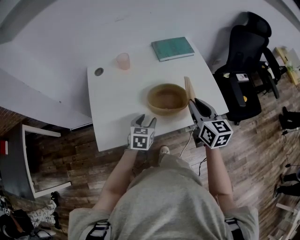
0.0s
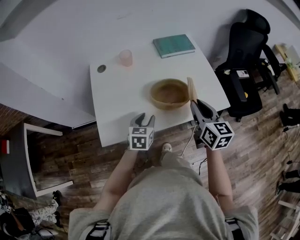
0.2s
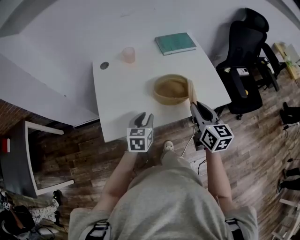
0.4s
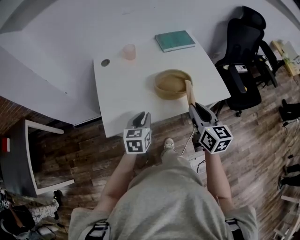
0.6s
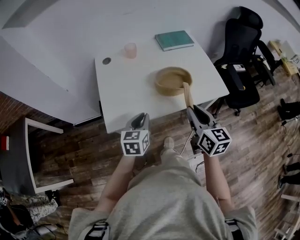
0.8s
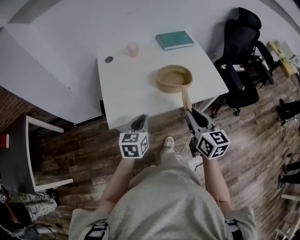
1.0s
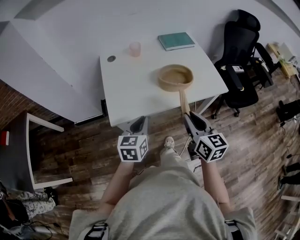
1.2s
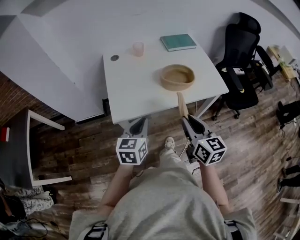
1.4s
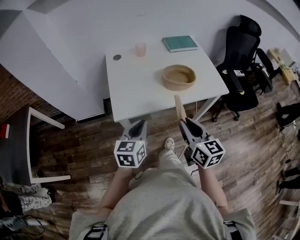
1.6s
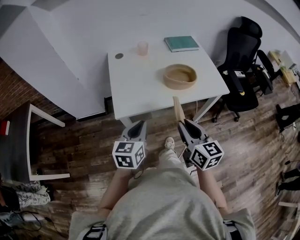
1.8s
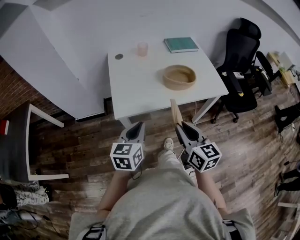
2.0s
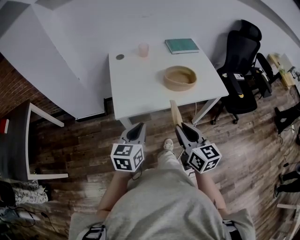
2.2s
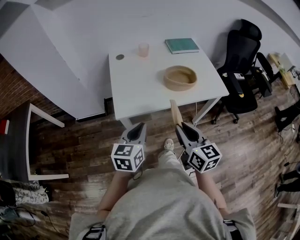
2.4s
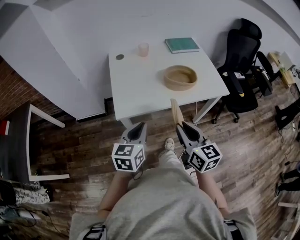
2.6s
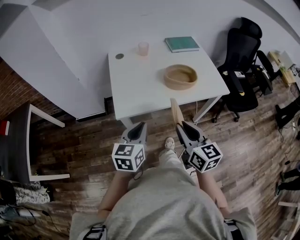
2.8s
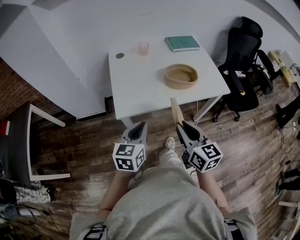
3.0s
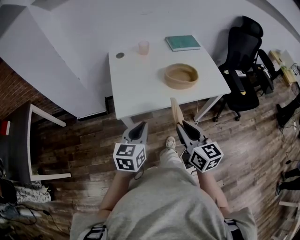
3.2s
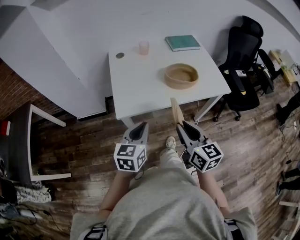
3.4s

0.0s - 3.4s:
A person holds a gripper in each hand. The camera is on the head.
0.0s - 1.6s: The left gripper travels backward, upward and to the left by about 30 cm, and closes. Meanwhile the right gripper moves backward and to the left, about 30 cm.
1.6s - 3.4s: The grippers move only a little.

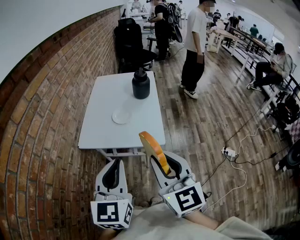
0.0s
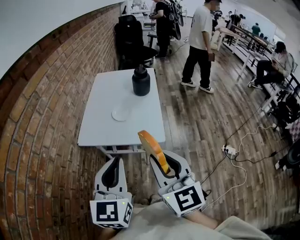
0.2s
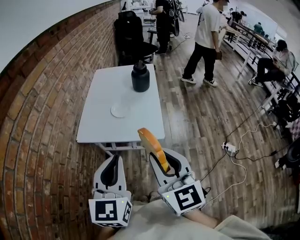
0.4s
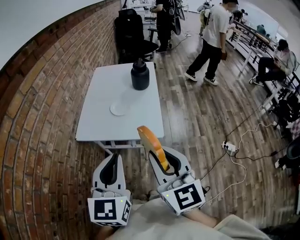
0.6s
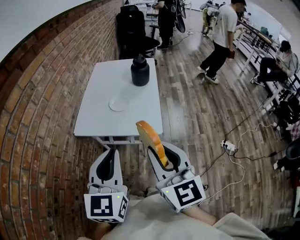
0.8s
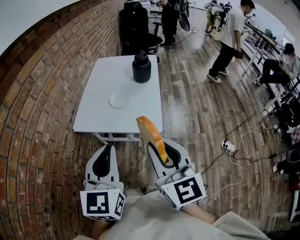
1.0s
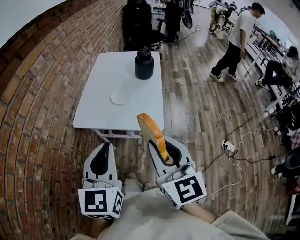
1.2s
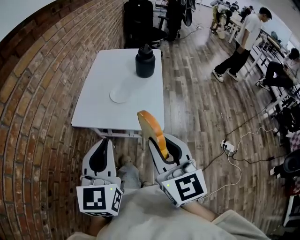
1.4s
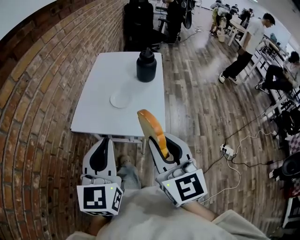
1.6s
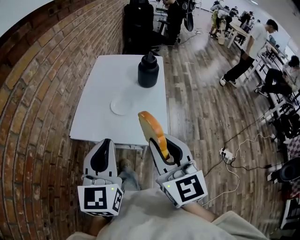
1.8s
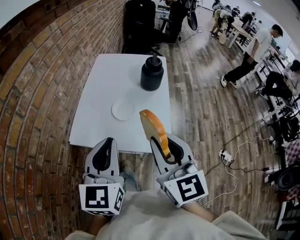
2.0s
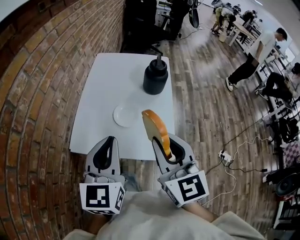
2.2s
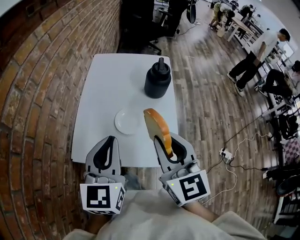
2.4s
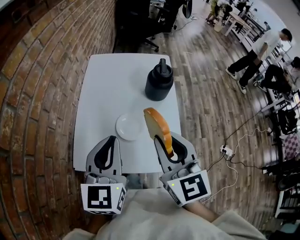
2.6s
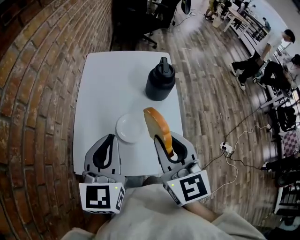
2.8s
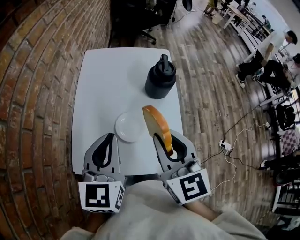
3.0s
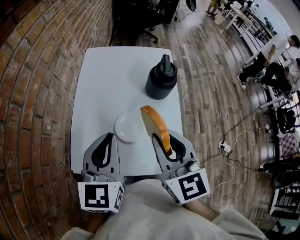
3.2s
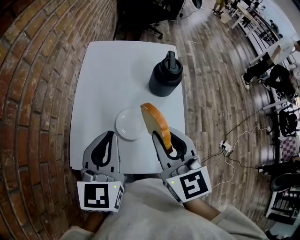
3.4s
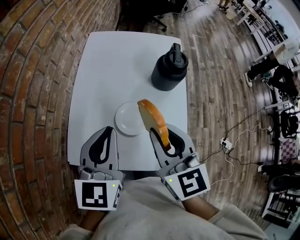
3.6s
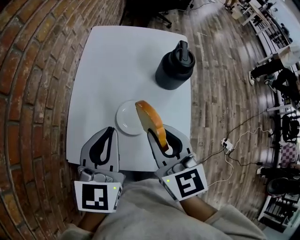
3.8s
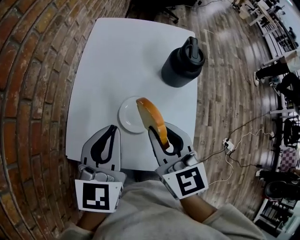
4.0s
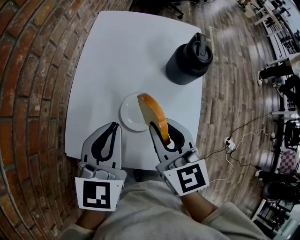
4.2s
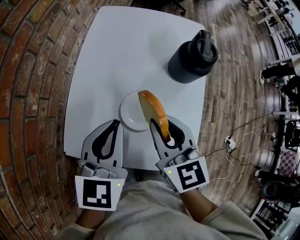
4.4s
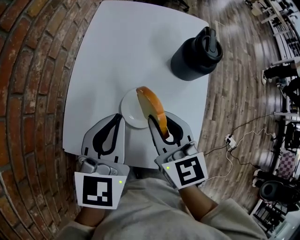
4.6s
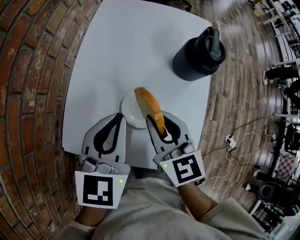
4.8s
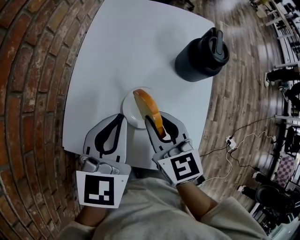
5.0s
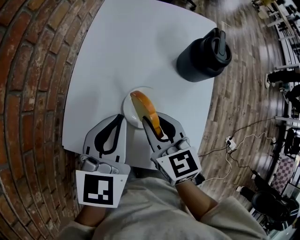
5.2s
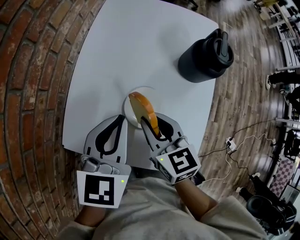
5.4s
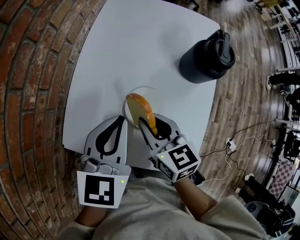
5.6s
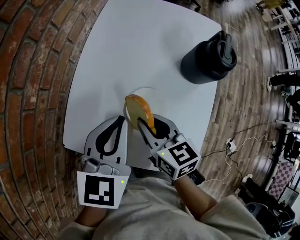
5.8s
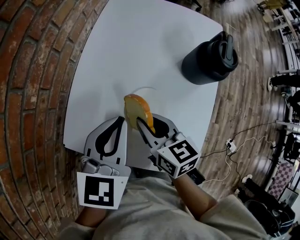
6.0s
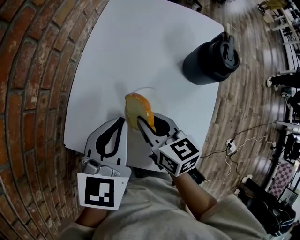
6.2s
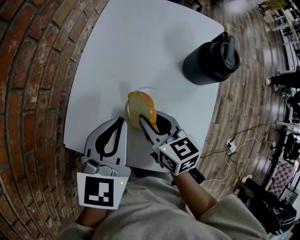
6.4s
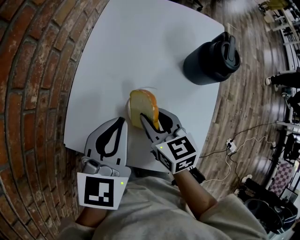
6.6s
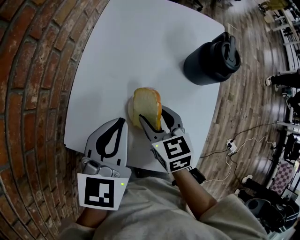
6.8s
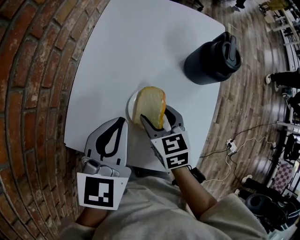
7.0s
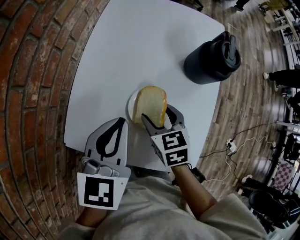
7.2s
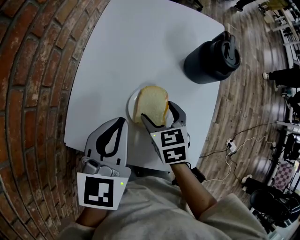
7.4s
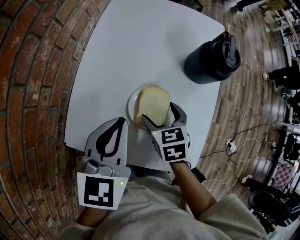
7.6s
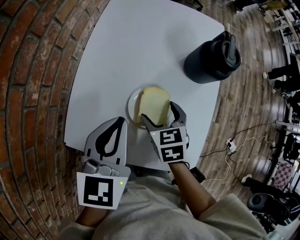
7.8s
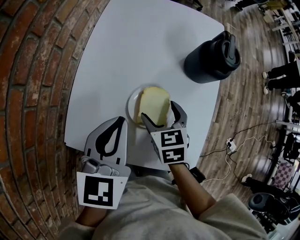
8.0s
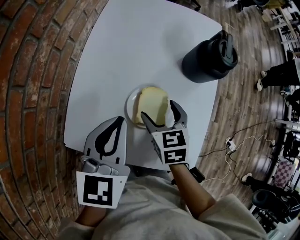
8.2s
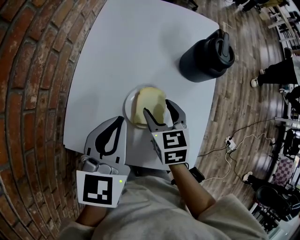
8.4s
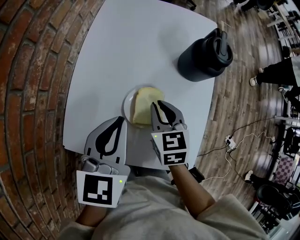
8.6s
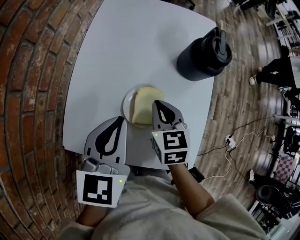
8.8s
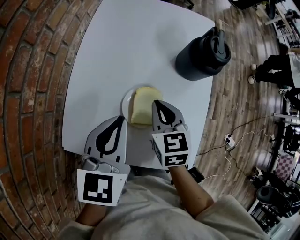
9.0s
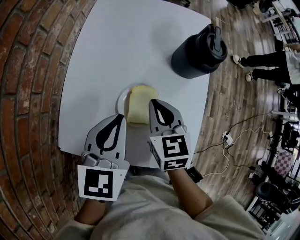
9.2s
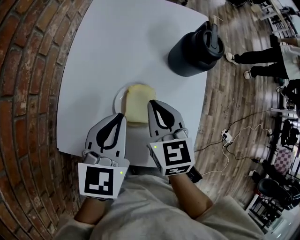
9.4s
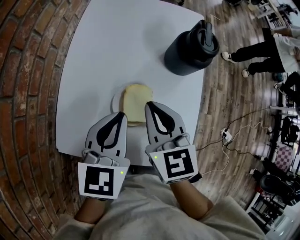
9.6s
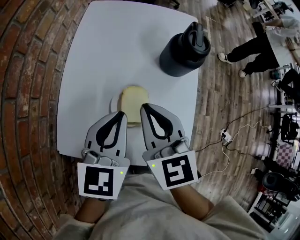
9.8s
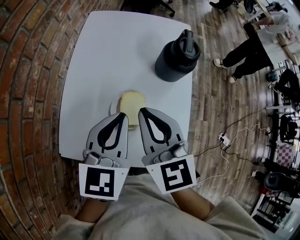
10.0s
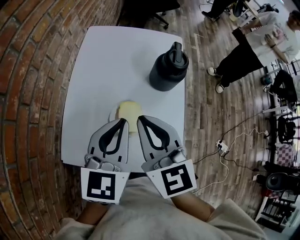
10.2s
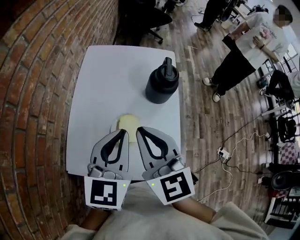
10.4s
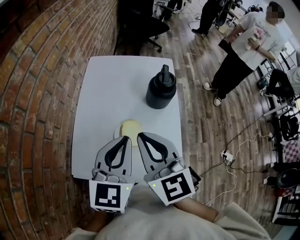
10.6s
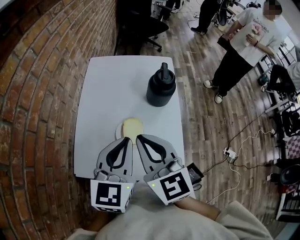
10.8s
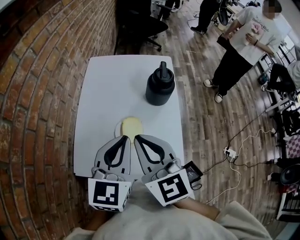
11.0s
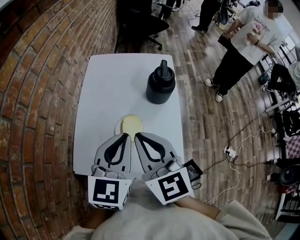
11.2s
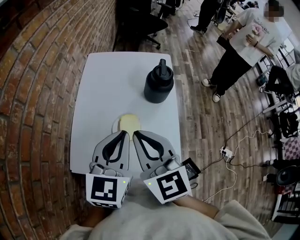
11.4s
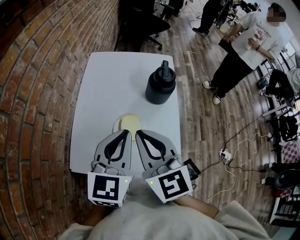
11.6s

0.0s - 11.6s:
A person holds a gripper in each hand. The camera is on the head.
0.0s - 1.4s: The right gripper ends up about 5 cm from where it was.
1.4s - 2.8s: The grippers both shift forward by roughly 30 cm.
2.8s - 4.4s: The left gripper shifts about 10 cm downward; the right gripper shifts approximately 15 cm downward and forward.
4.4s - 5.8s: The right gripper goes approximately 10 cm downward, and swivels roughly 20 degrees.
5.8s - 7.2s: The right gripper goes roughly 5 cm downward, rotates approximately 20 degrees, and opens up.
7.2s - 8.8s: The right gripper closes its fingers.
8.8s - 10.2s: The right gripper moves upward, about 20 cm, and swivels roughly 30 degrees, while the left gripper is displaced upward and to the right by approximately 10 cm.
10.2s - 11.6s: The right gripper ends up roughly 5 cm from where it was; the left gripper ends up some 5 cm from where it was.

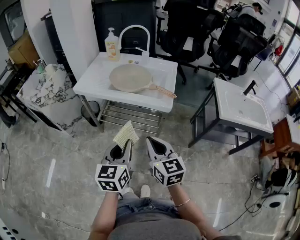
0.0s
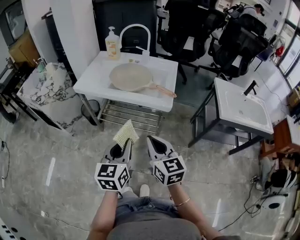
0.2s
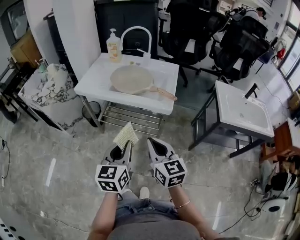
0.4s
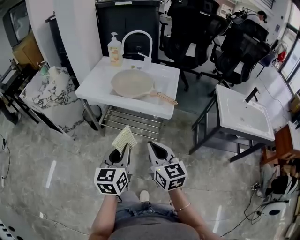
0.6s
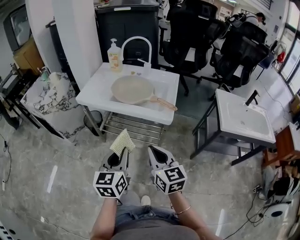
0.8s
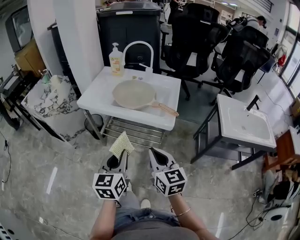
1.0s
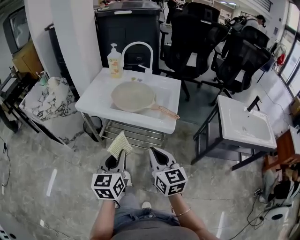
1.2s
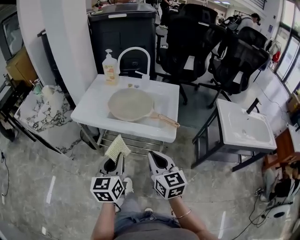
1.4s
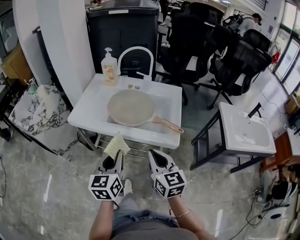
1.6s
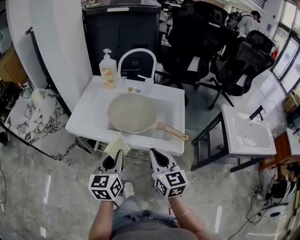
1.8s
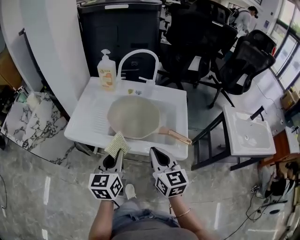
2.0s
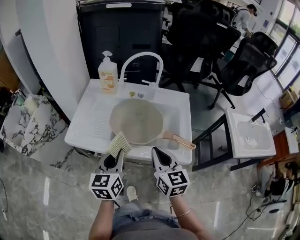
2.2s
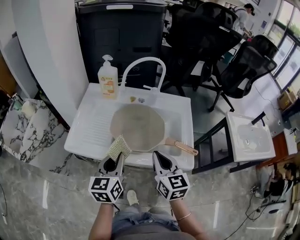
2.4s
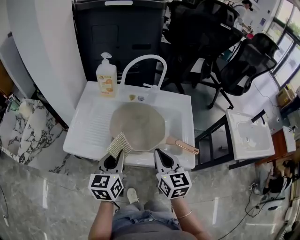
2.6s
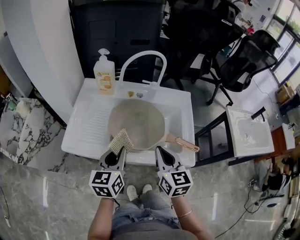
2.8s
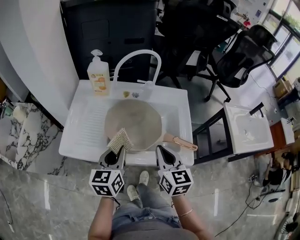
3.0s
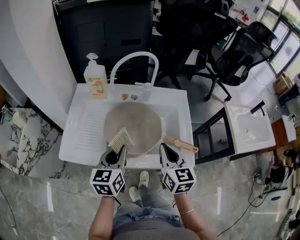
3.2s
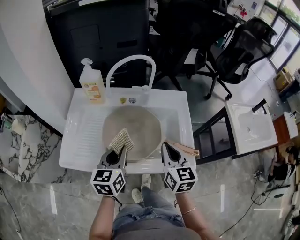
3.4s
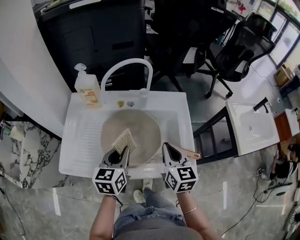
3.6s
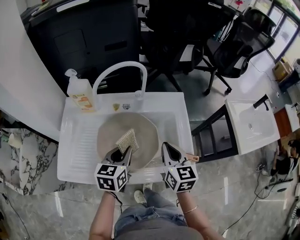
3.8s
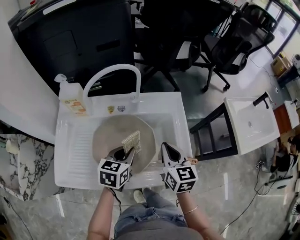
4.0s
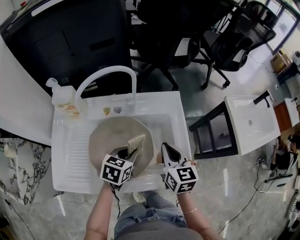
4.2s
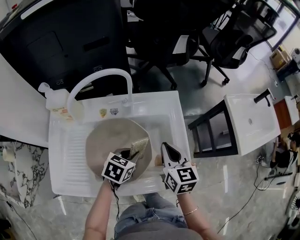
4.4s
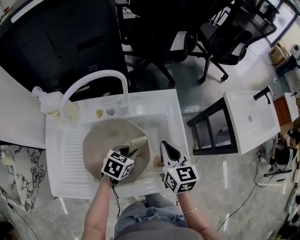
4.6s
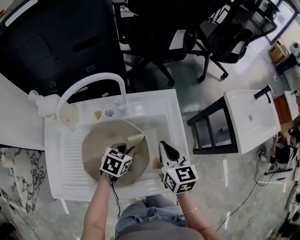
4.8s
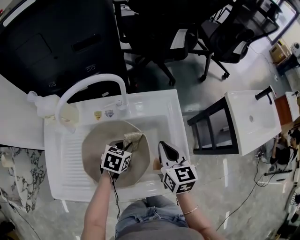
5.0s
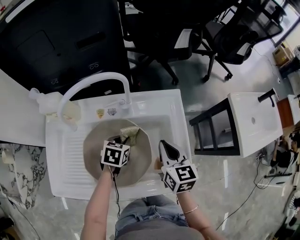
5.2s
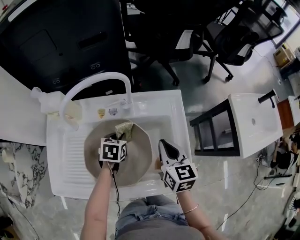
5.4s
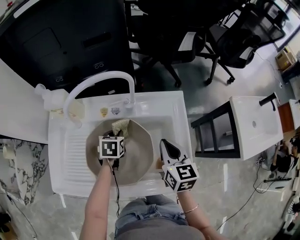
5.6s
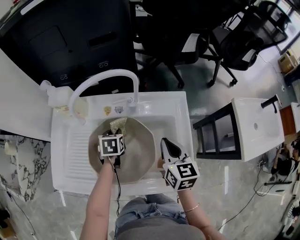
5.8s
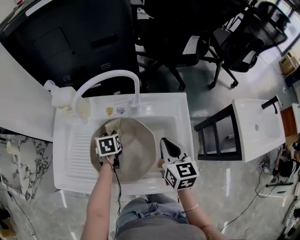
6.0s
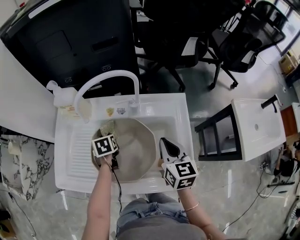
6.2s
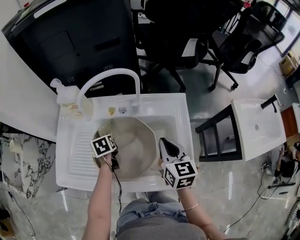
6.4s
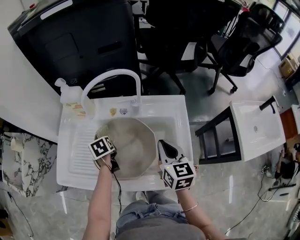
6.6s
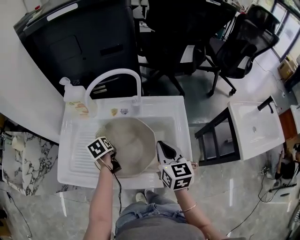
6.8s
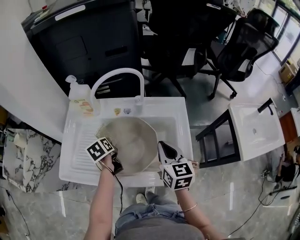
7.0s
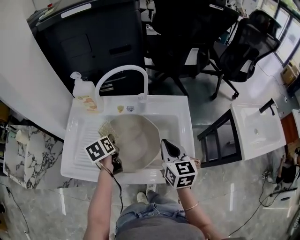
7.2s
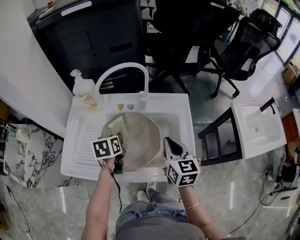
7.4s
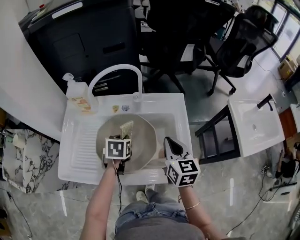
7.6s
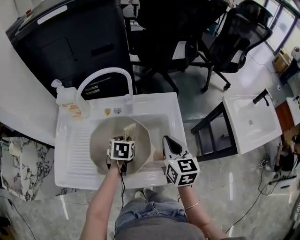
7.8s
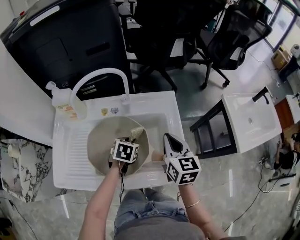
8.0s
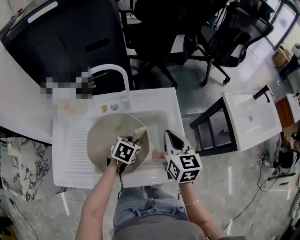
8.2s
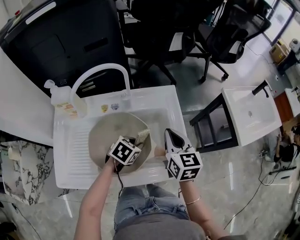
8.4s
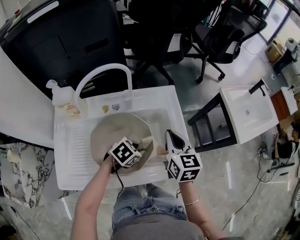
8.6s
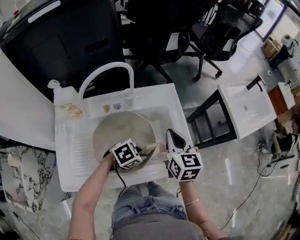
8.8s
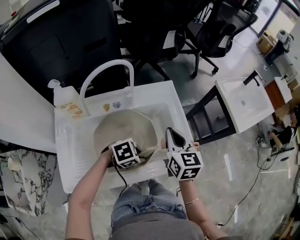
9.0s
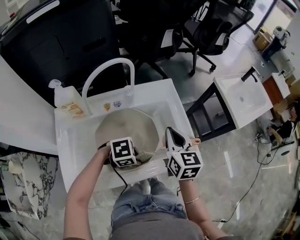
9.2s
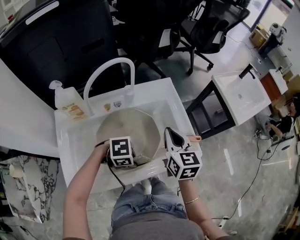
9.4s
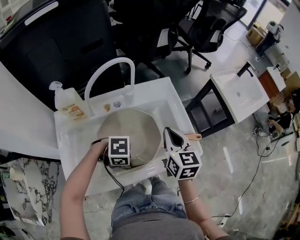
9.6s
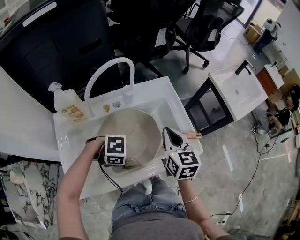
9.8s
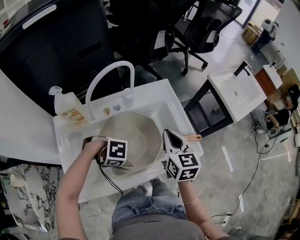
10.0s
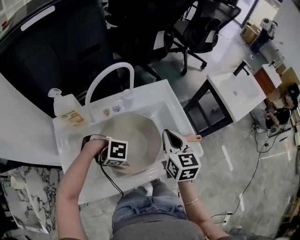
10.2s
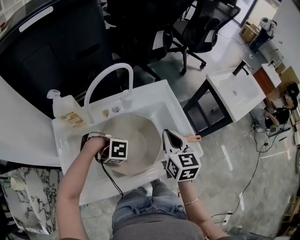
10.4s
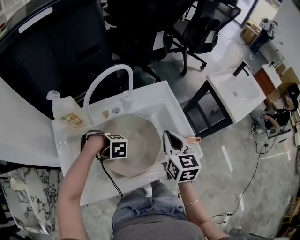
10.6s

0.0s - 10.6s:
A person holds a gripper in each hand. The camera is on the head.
0.0s - 1.6s: The two grippers go roughly 20 cm forward.
1.6s - 3.0s: Both grippers move forward, roughly 20 cm.
3.0s - 4.6s: The right gripper moves approximately 20 cm; the left gripper changes place by roughly 25 cm, and angles its fingers downward, by about 30 degrees.
4.6s - 6.0s: The left gripper shifts by approximately 15 cm, and swivels approximately 50 degrees.
6.0s - 7.6s: The left gripper heads backward and upward, covering approximately 10 cm. The right gripper heads backward, covering approximately 5 cm.
7.6s - 9.0s: The left gripper changes place by some 15 cm, and swivels about 80 degrees.
9.0s - 10.6s: The left gripper shifts by some 20 cm, and turns by some 50 degrees.
